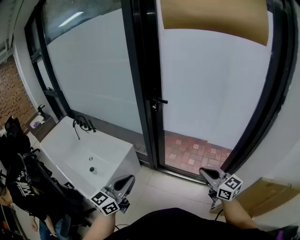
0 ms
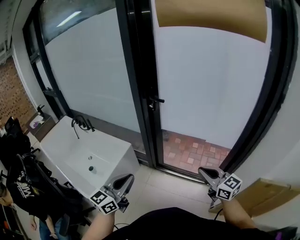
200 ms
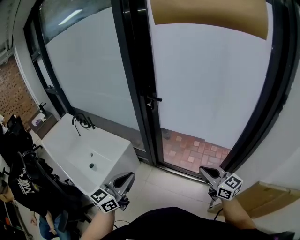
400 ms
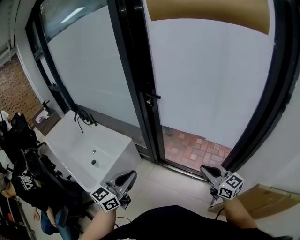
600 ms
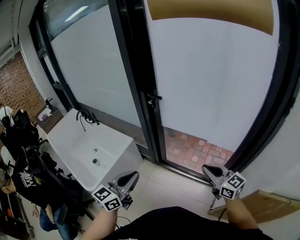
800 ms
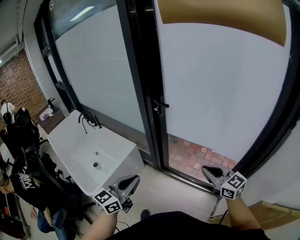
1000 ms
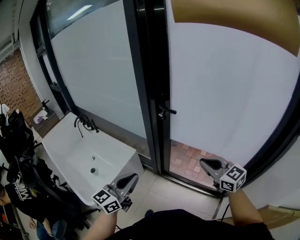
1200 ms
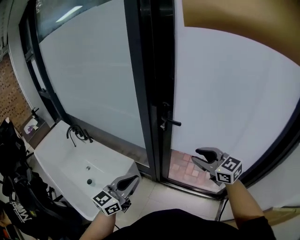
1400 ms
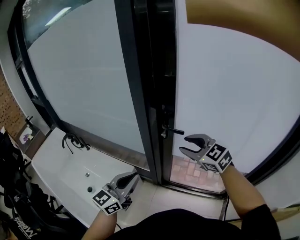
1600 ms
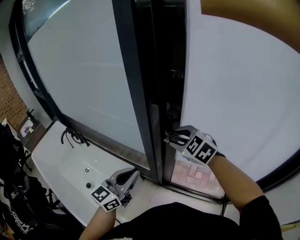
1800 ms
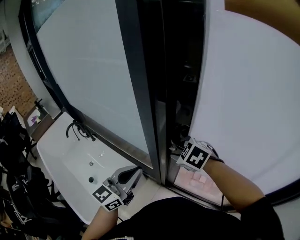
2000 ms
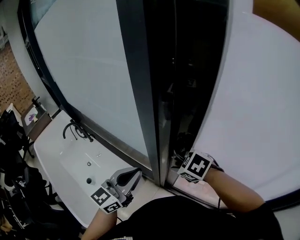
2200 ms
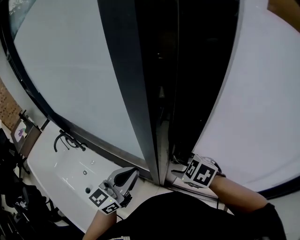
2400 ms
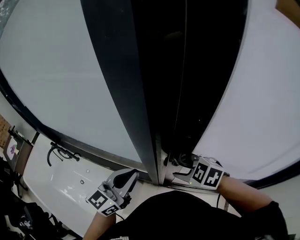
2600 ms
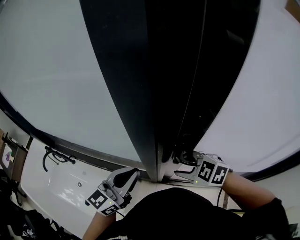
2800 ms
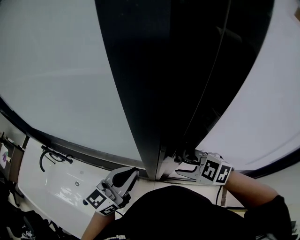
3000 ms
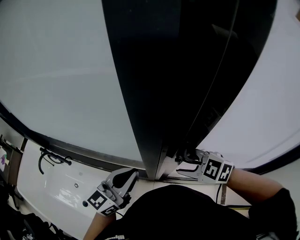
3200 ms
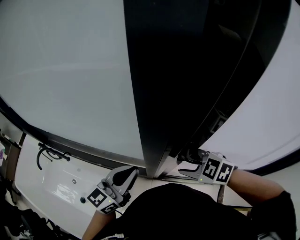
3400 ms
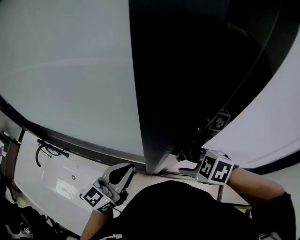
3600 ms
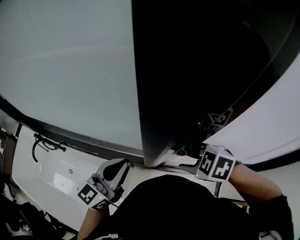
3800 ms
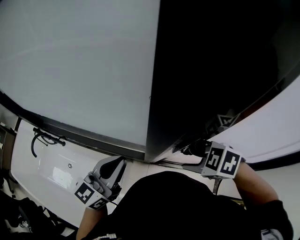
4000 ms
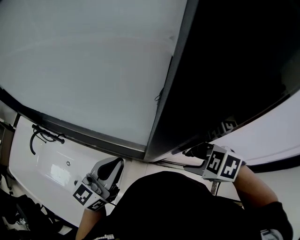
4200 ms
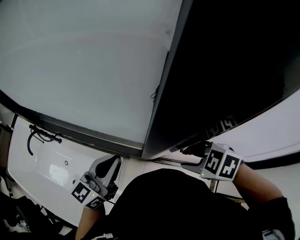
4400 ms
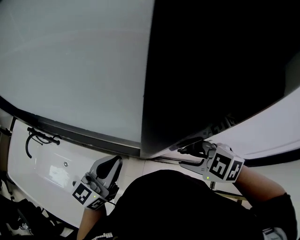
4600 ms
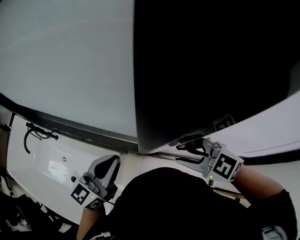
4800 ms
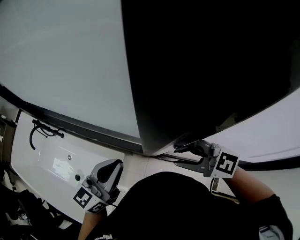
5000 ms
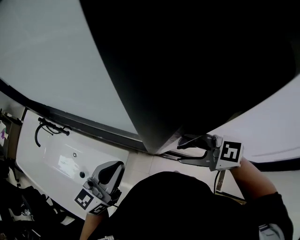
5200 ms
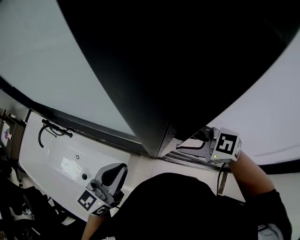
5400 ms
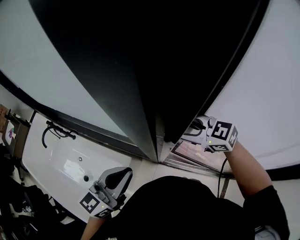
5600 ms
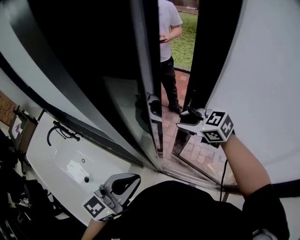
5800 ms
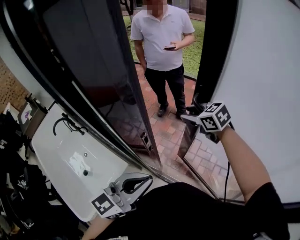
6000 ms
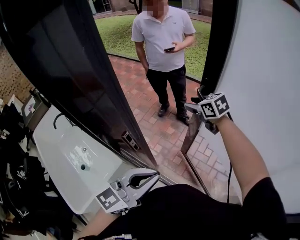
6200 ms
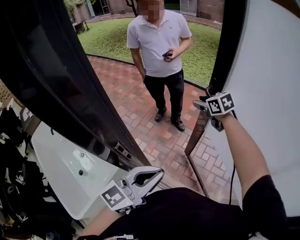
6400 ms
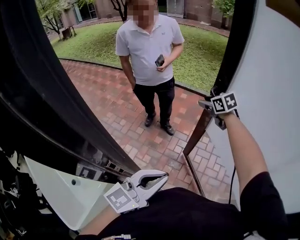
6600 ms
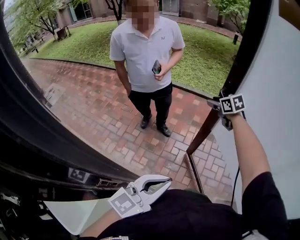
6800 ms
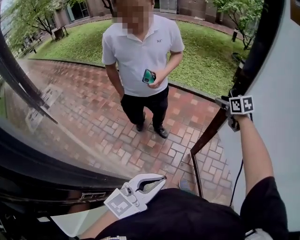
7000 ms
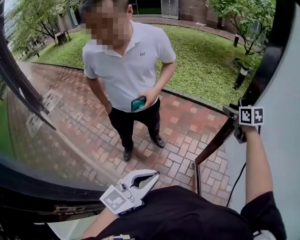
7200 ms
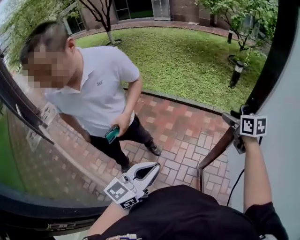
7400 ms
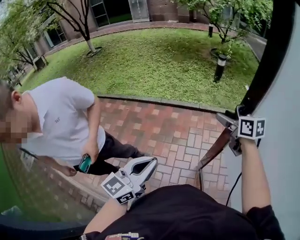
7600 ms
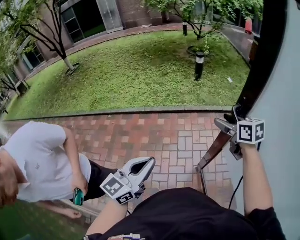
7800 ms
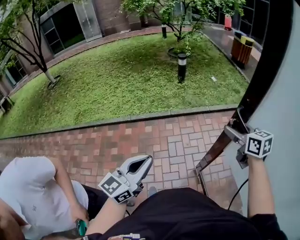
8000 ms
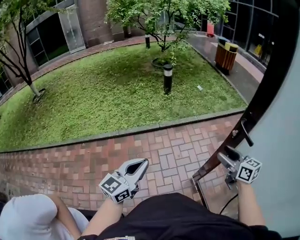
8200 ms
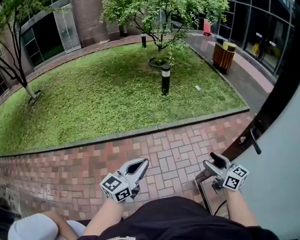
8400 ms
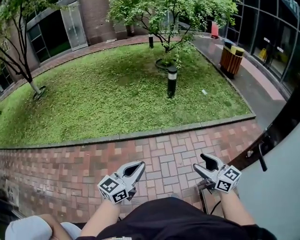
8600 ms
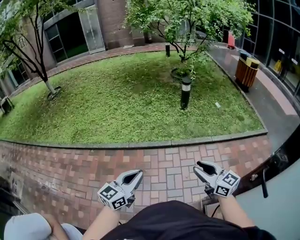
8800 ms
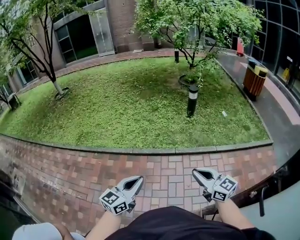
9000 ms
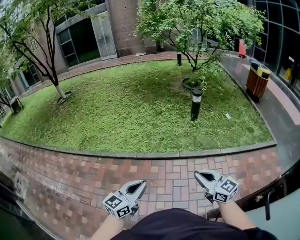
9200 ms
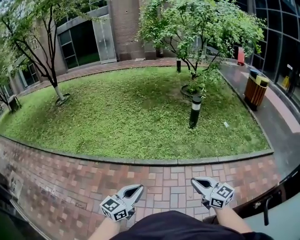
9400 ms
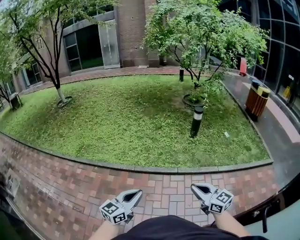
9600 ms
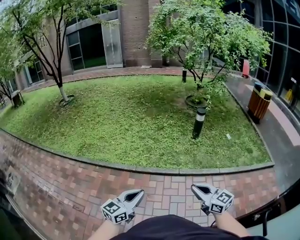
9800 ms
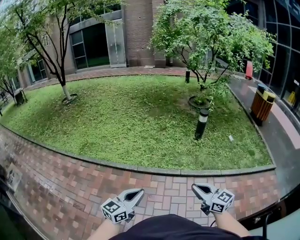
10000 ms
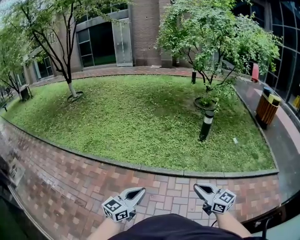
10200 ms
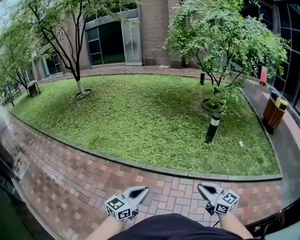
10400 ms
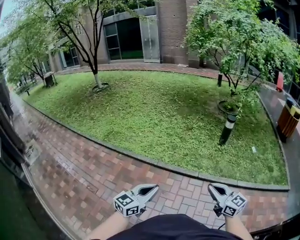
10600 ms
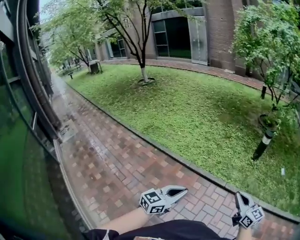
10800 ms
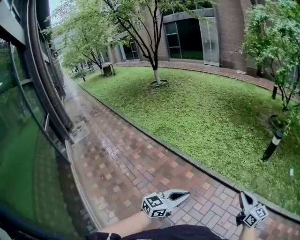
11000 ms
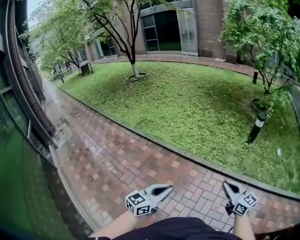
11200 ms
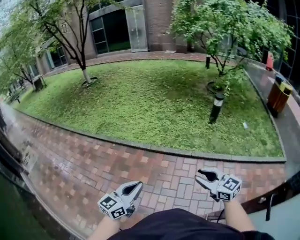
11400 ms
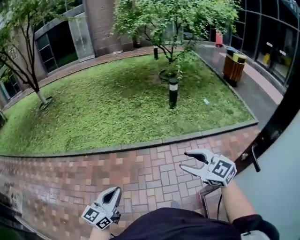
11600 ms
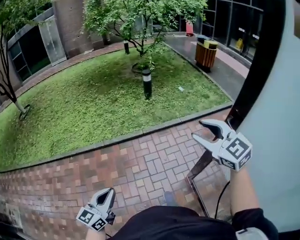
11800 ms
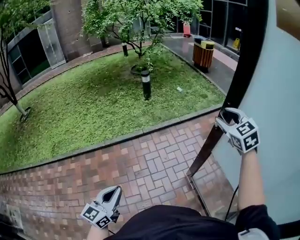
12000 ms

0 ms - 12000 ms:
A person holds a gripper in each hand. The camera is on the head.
0 ms - 1600 ms: The two grippers go some 35 cm forward. The right gripper changes its angle by about 30 degrees, and opens up.
1600 ms - 3000 ms: The left gripper moves forward, some 25 cm; the right gripper is displaced forward, downward and to the left by about 20 cm, and turns by some 20 degrees.
3000 ms - 4400 ms: The left gripper shifts about 5 cm to the left, while the right gripper swivels about 20 degrees.
4400 ms - 6000 ms: The left gripper travels to the right and backward by approximately 25 cm; the right gripper travels forward and to the right by about 30 cm, and turns by roughly 30 degrees.
6000 ms - 7600 ms: The pair of grippers is taken forward and to the right, about 60 cm. The right gripper changes its angle by approximately 50 degrees.
7600 ms - 9000 ms: The right gripper heads forward, covering about 20 cm, changes its angle by about 20 degrees, and closes. Meanwhile the left gripper heads forward, covering some 40 cm.
9000 ms - 10400 ms: The right gripper moves forward, about 5 cm. Meanwhile the left gripper travels to the left by some 5 cm.
10400 ms - 12000 ms: The right gripper ends up about 40 cm from where it was, swivels about 60 degrees, and opens up. The left gripper changes place by approximately 30 cm.

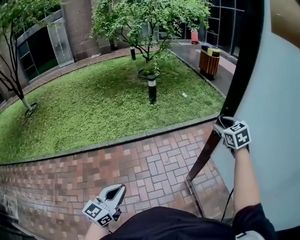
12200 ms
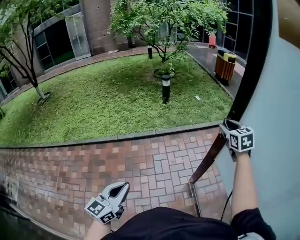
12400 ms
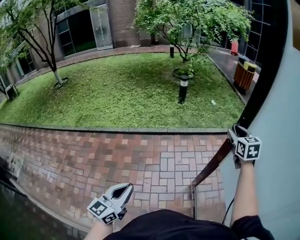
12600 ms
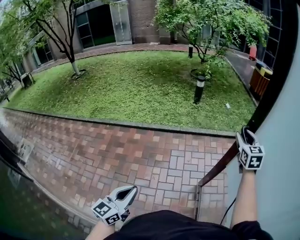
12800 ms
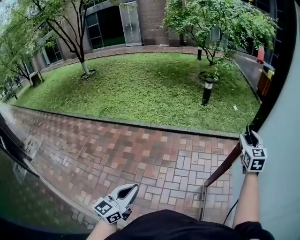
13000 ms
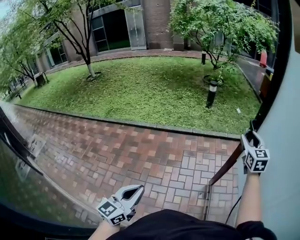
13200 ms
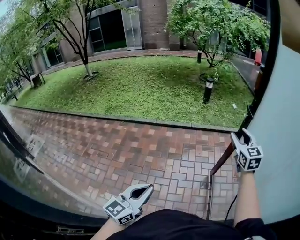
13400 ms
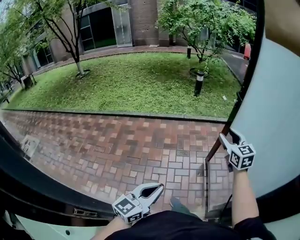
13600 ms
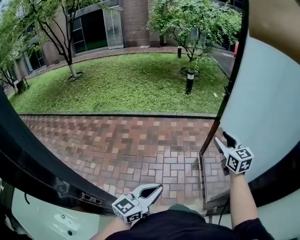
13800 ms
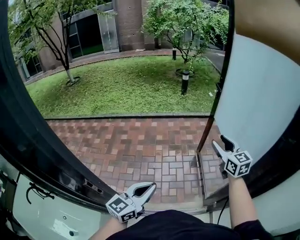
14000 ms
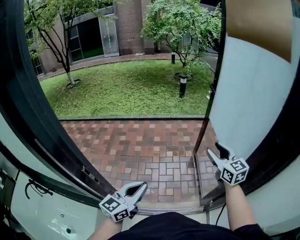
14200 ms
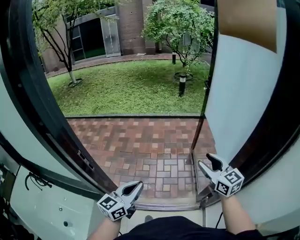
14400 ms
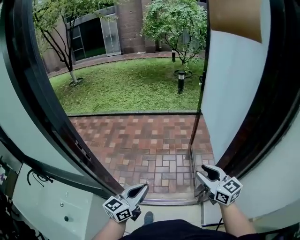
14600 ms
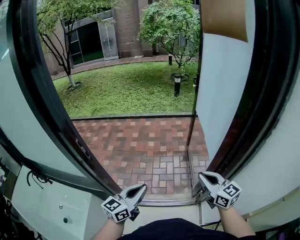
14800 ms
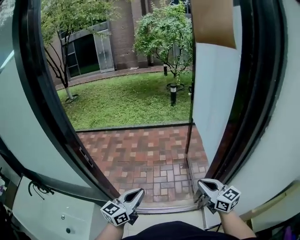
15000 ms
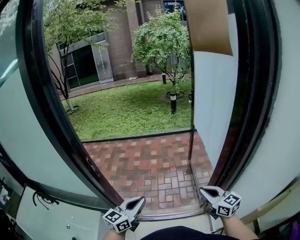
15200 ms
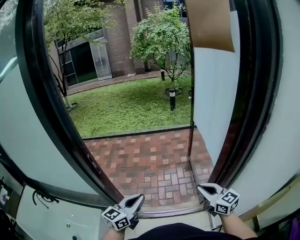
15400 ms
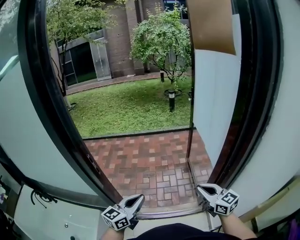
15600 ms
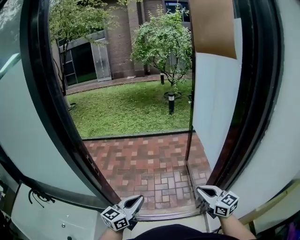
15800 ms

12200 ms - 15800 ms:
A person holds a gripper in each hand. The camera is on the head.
12200 ms - 14000 ms: The pair of grippers is taken backward, about 60 cm. The right gripper changes its angle by about 30 degrees.
14000 ms - 15800 ms: The left gripper travels backward by some 20 cm, while the right gripper goes about 35 cm backward, and closes.

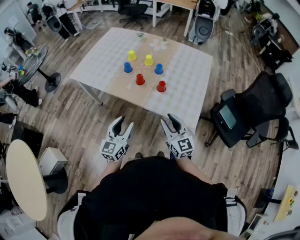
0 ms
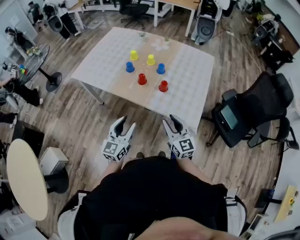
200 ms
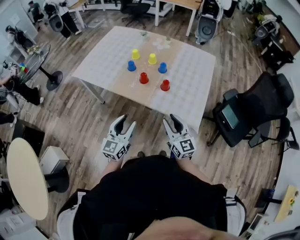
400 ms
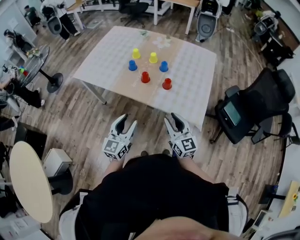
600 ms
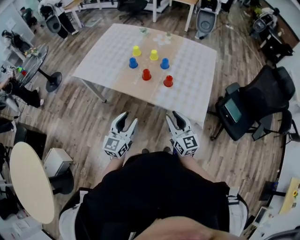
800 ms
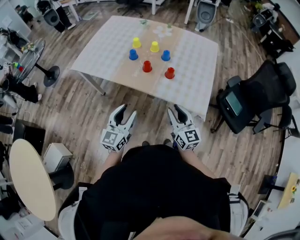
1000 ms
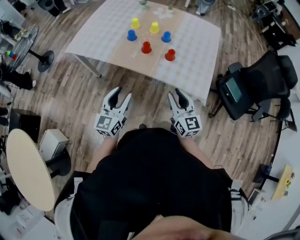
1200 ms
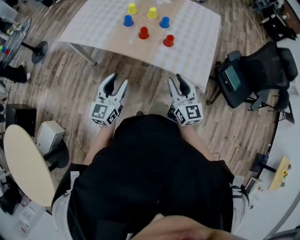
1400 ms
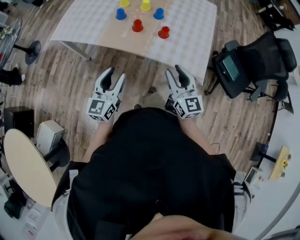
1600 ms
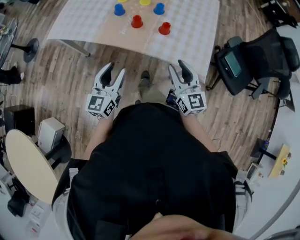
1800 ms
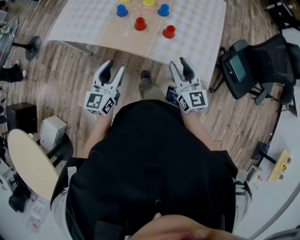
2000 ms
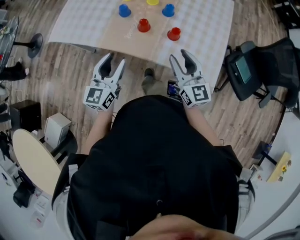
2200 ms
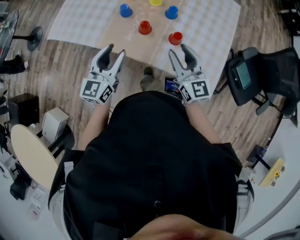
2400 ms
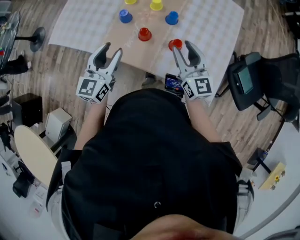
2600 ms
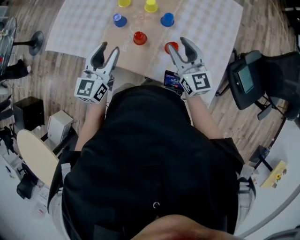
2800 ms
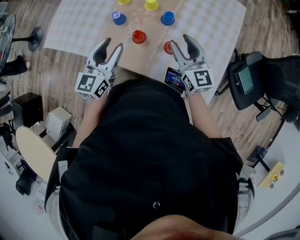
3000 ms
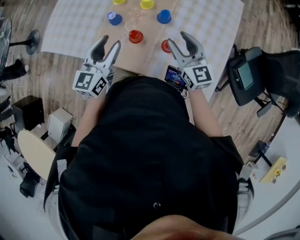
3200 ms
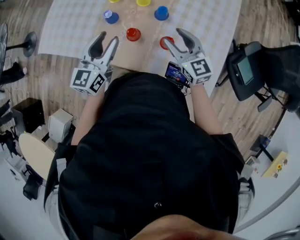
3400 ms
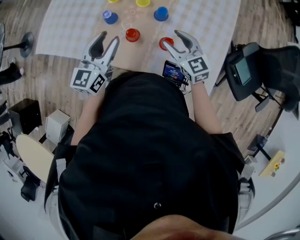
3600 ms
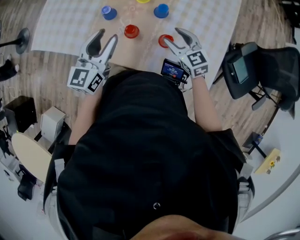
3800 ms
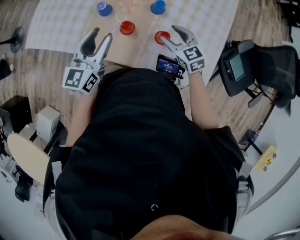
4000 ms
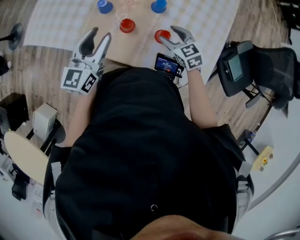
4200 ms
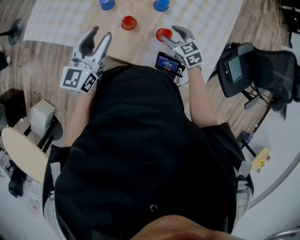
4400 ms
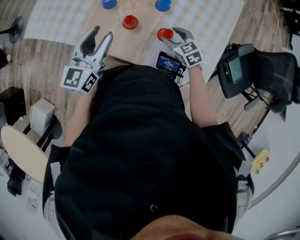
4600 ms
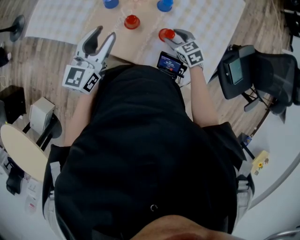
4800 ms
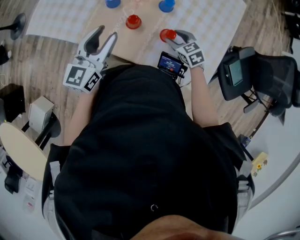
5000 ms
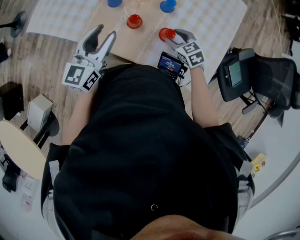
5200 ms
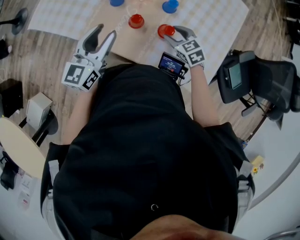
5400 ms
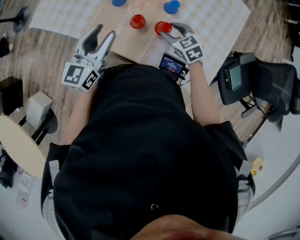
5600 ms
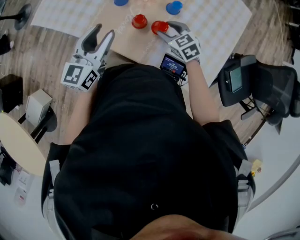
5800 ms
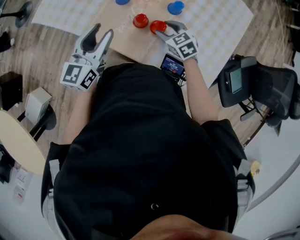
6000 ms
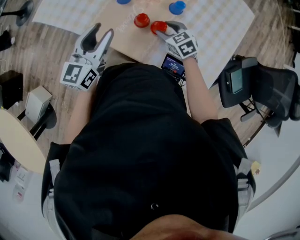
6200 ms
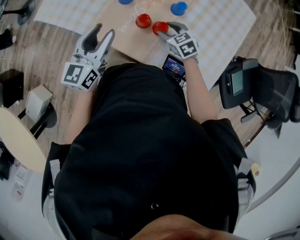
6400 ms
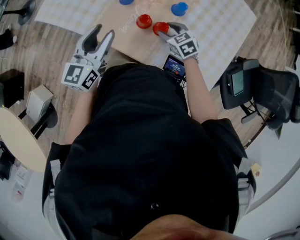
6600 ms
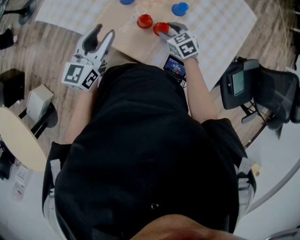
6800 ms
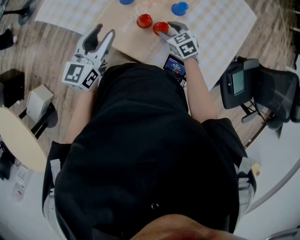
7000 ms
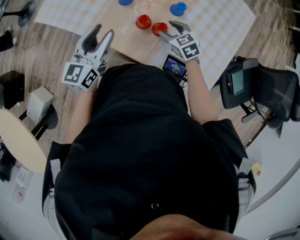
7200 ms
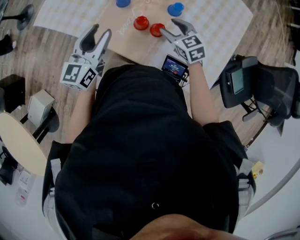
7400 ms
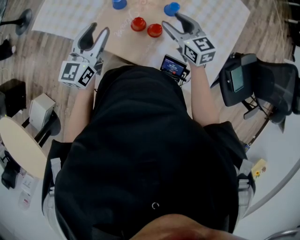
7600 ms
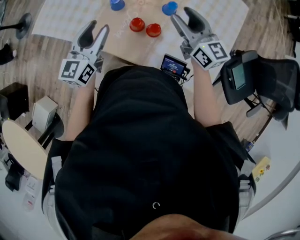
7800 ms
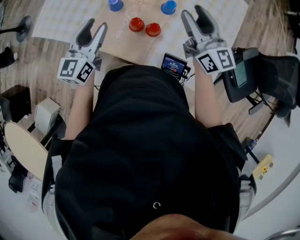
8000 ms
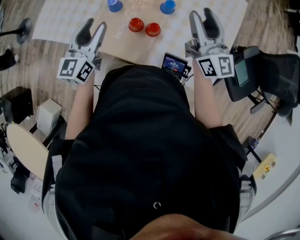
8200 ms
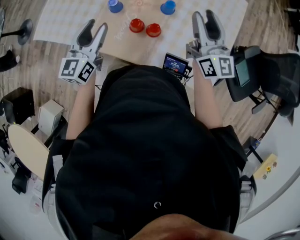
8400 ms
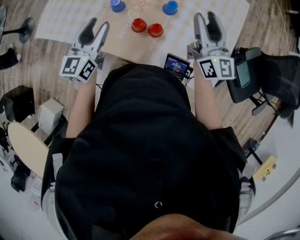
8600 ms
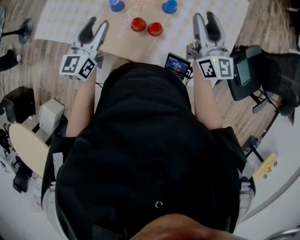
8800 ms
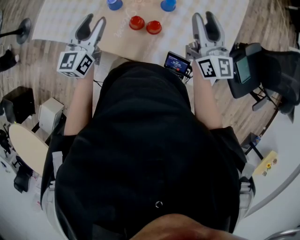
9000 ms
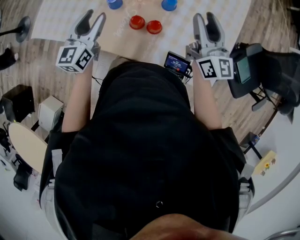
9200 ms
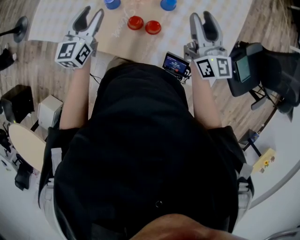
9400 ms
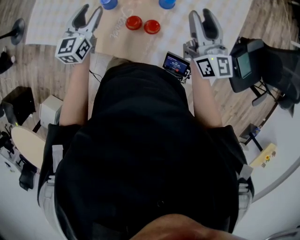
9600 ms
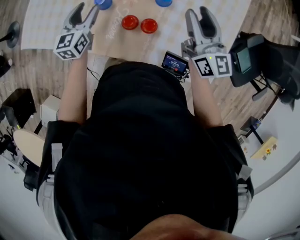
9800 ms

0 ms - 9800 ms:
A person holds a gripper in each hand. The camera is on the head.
0 ms - 1400 ms: The left gripper is displaced to the left by about 10 cm.
1400 ms - 2800 ms: Both grippers travel together forward, roughly 30 cm.
2800 ms - 4200 ms: The right gripper shifts approximately 15 cm downward, and tilts its fingers roughly 30 degrees downward.
4200 ms - 5600 ms: The grippers make only small movements.
5600 ms - 7000 ms: The right gripper moves about 5 cm.
7000 ms - 8400 ms: The right gripper goes about 30 cm upward and to the right, and tilts its fingers about 60 degrees upward; the left gripper moves roughly 5 cm.
8400 ms - 9800 ms: The left gripper heads forward and downward, covering about 15 cm; the right gripper heads downward, covering some 5 cm.
